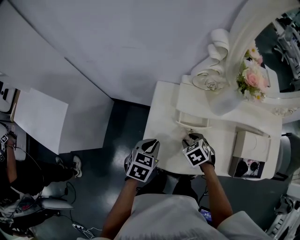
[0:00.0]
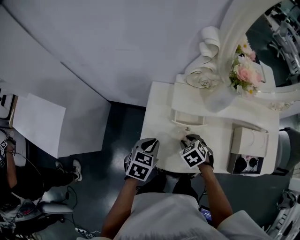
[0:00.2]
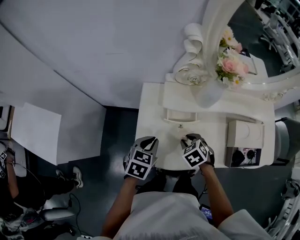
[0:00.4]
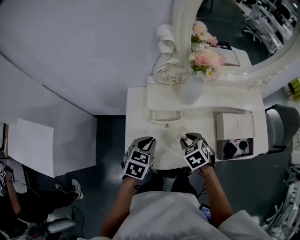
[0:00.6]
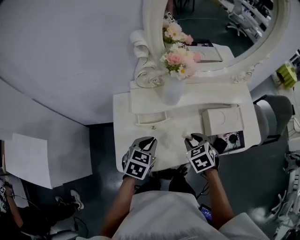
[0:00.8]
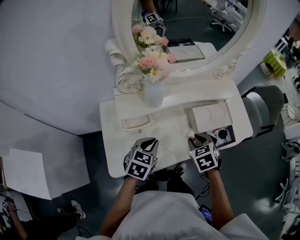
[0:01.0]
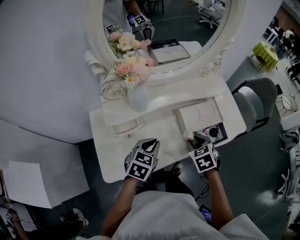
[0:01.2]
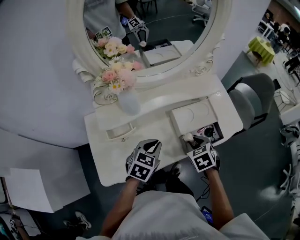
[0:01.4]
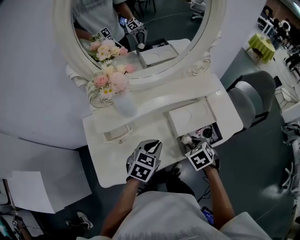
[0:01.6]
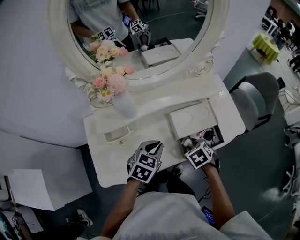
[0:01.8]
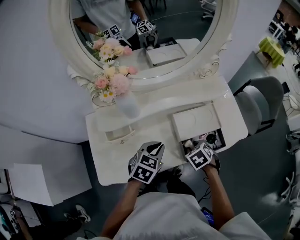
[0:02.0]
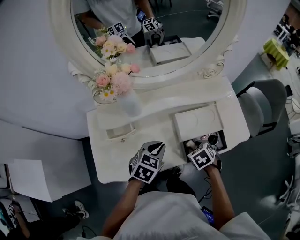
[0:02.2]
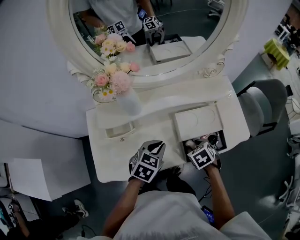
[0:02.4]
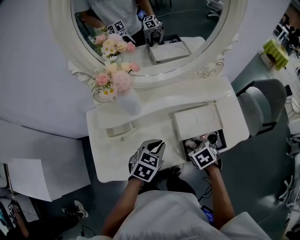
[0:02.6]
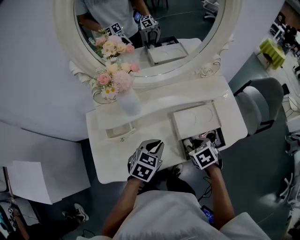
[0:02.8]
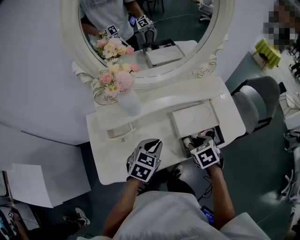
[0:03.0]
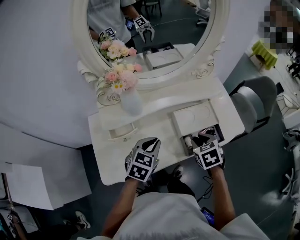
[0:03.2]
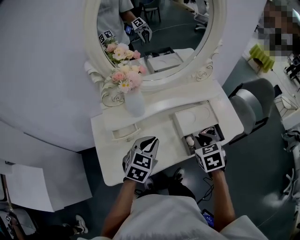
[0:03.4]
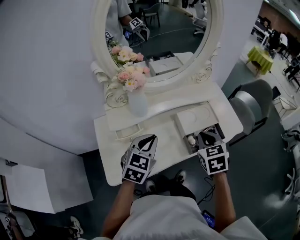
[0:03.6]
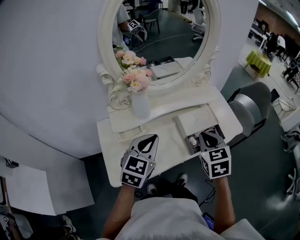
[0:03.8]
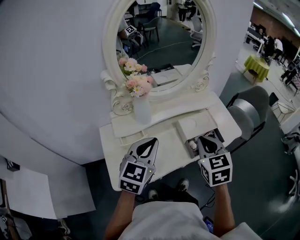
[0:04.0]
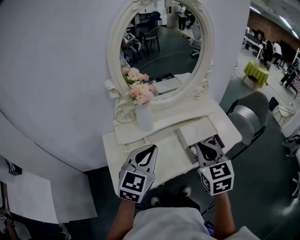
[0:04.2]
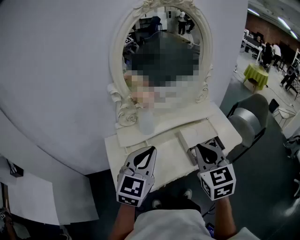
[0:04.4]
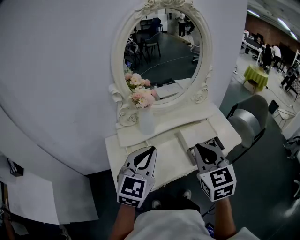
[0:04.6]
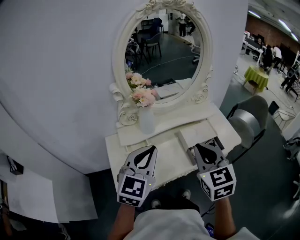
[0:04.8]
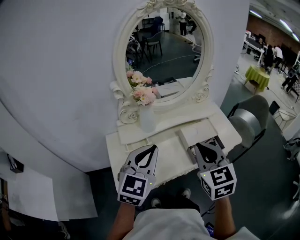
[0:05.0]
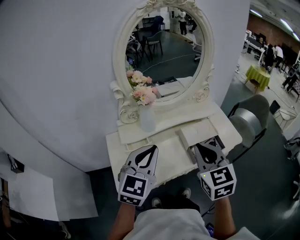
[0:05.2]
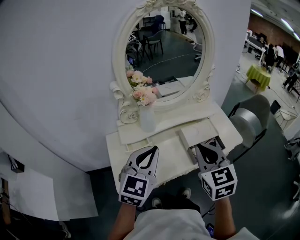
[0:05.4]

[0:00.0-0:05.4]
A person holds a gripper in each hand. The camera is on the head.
0:00.0 to 0:01.4: The right gripper shifts by roughly 35 cm, and swivels approximately 40 degrees; the left gripper ends up about 35 cm from where it was, and rotates some 40 degrees.
0:02.8 to 0:04.0: The two grippers go roughly 20 cm upward. The right gripper points its fingers some 40 degrees further upward, and closes up; the left gripper changes its angle by approximately 30 degrees.
0:04.0 to 0:05.4: The two grippers go roughly 5 cm upward.

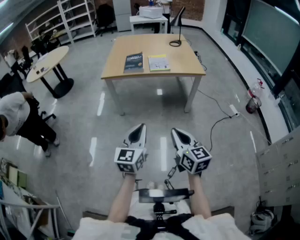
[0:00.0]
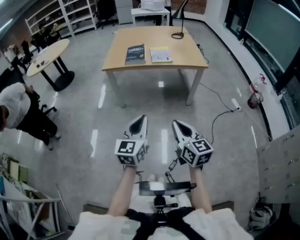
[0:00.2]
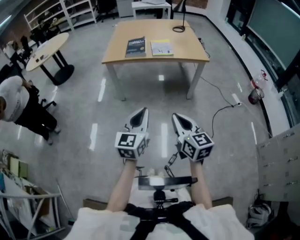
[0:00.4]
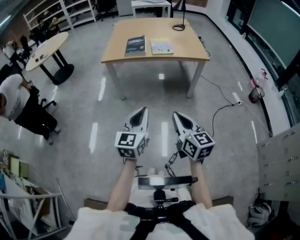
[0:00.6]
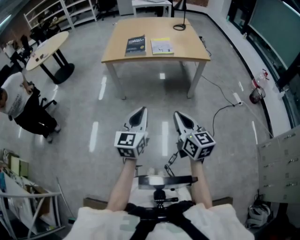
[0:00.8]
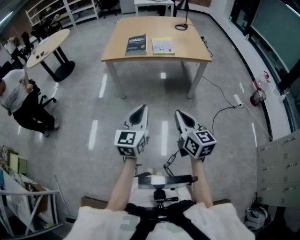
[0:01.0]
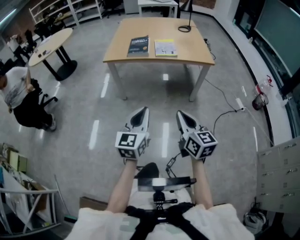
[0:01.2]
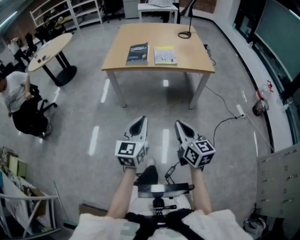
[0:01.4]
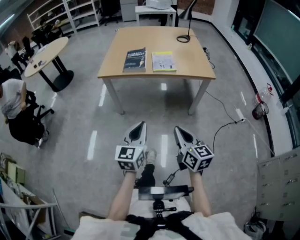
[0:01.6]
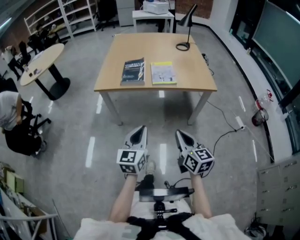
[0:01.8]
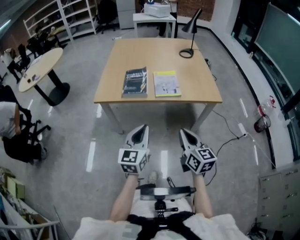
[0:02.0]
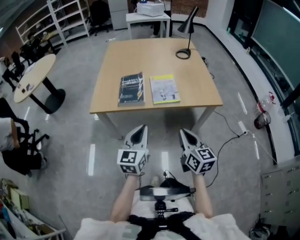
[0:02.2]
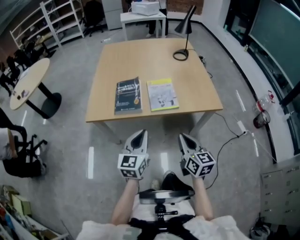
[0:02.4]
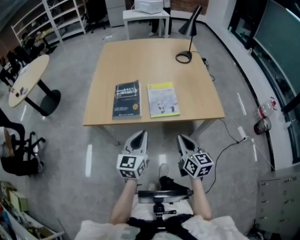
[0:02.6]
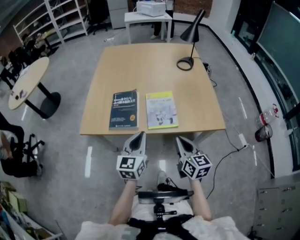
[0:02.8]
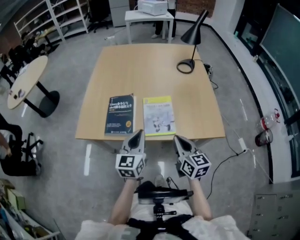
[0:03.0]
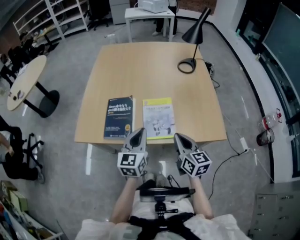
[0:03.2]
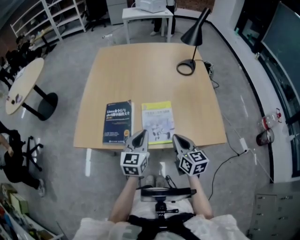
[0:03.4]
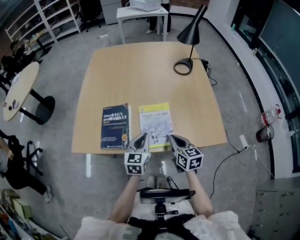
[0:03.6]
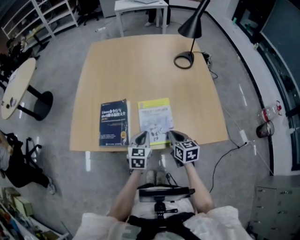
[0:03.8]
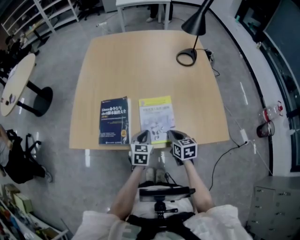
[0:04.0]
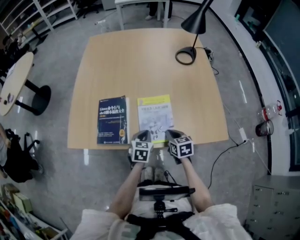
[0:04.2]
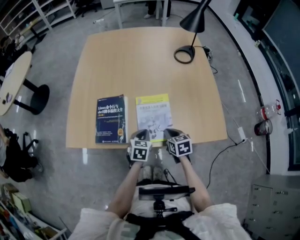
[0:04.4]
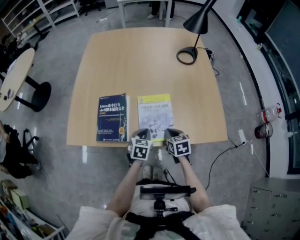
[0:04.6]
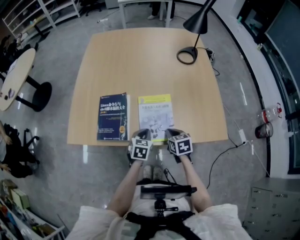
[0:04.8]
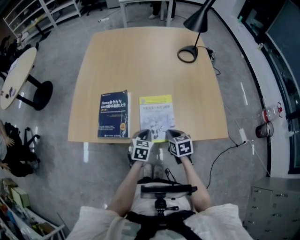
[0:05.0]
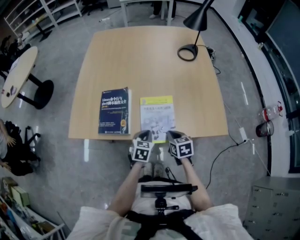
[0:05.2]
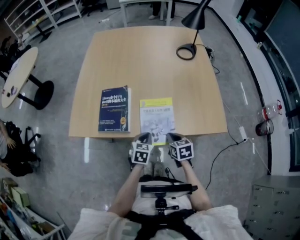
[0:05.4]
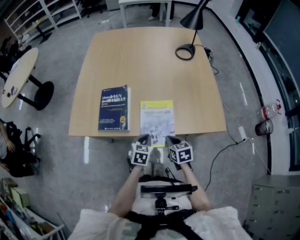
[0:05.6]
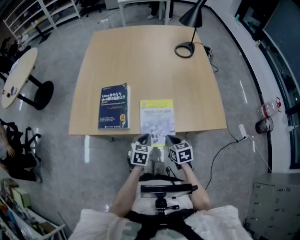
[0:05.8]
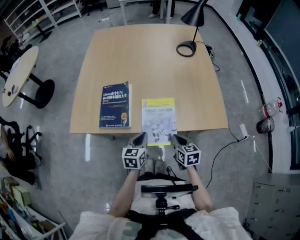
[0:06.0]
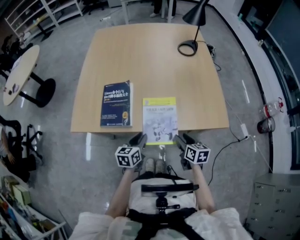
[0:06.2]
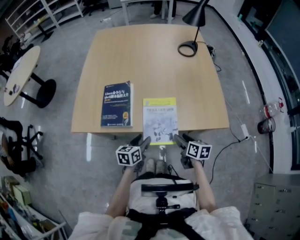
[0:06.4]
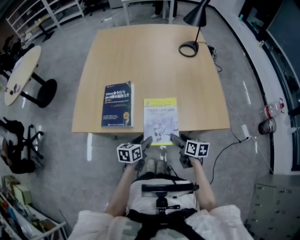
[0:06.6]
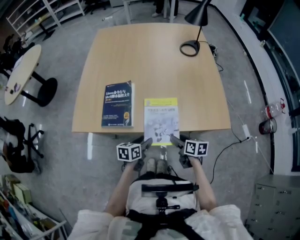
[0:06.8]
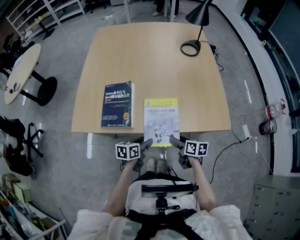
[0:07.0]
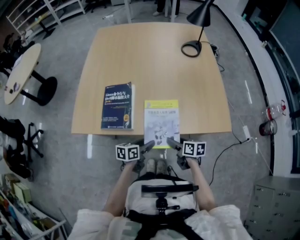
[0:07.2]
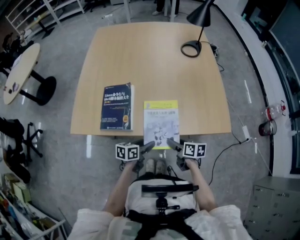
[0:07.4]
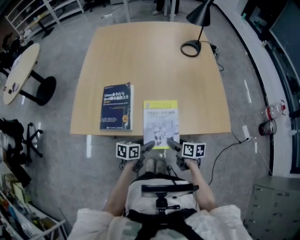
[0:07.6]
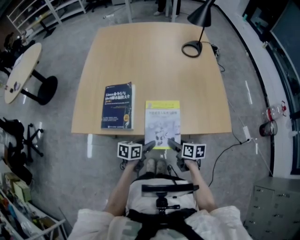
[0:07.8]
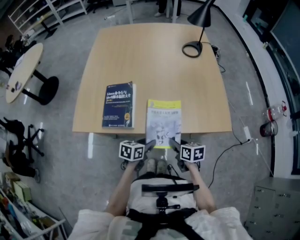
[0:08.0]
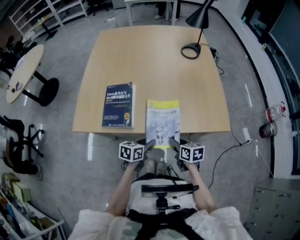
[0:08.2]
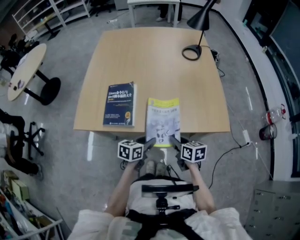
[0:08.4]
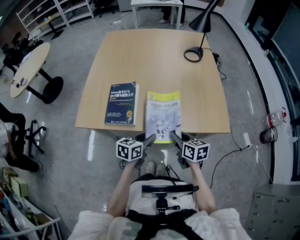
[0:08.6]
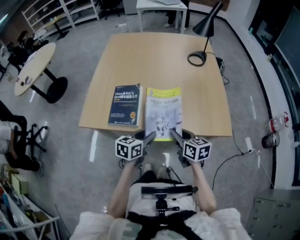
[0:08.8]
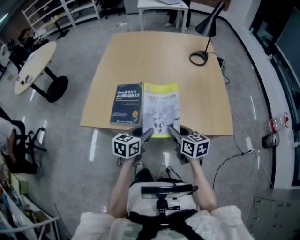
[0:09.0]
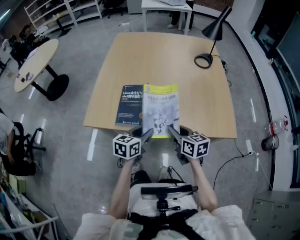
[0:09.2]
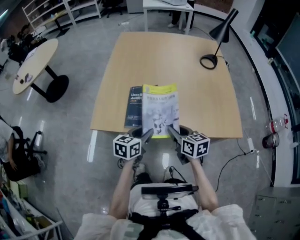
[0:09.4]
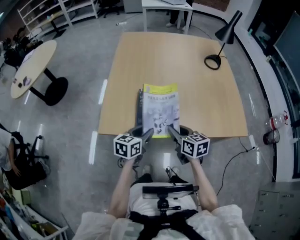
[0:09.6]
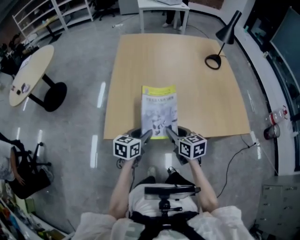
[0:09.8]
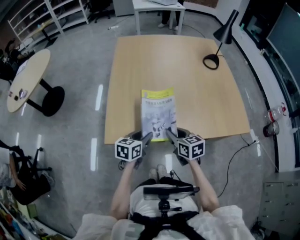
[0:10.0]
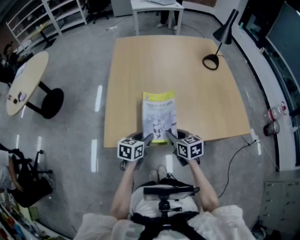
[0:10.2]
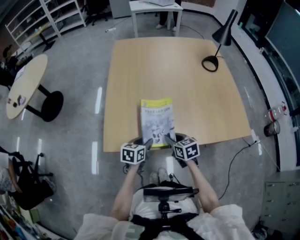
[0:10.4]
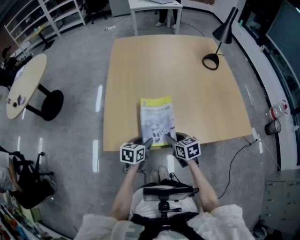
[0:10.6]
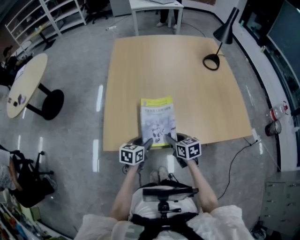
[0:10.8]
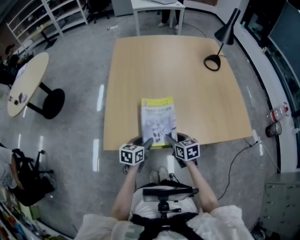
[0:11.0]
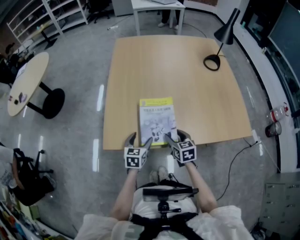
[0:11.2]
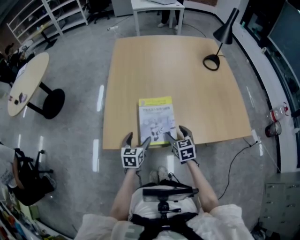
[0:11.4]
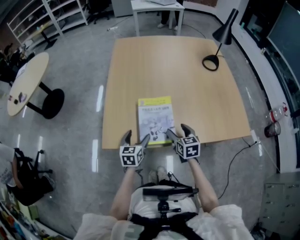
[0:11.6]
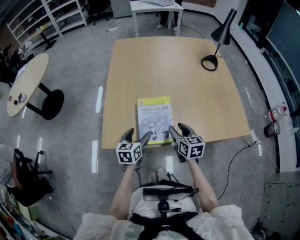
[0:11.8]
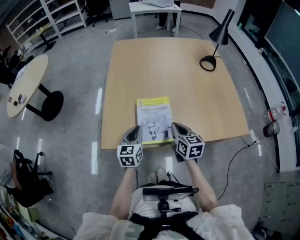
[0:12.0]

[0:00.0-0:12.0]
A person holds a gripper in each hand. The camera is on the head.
0:00.0 to 0:01.6: Both grippers move forward, approximately 15 cm.
0:01.6 to 0:03.0: The pair of grippers is taken forward, some 50 cm.
0:03.0 to 0:04.4: The two grippers go about 20 cm downward and forward. The right gripper angles its fingers downward, by roughly 30 degrees; the left gripper tilts its fingers some 30 degrees downward.
0:04.4 to 0:06.0: The grippers both shift backward by approximately 10 cm.
0:06.0 to 0:07.6: The right gripper rotates roughly 30 degrees, and opens its fingers. Meanwhile the left gripper is displaced downward by about 5 cm, changes its angle by about 30 degrees, and opens.
0:07.6 to 0:09.0: Both grippers move upward, about 15 cm. The right gripper turns by some 30 degrees, while the left gripper swivels some 30 degrees.
0:09.0 to 0:10.4: The two grippers go some 25 cm to the left and downward.
0:10.4 to 0:12.0: Both grippers travel together upward, some 10 cm. The left gripper swivels about 30 degrees, and opens, then closes once more. Meanwhile the right gripper rotates about 20 degrees, and closes.

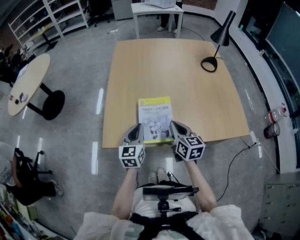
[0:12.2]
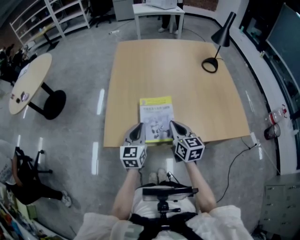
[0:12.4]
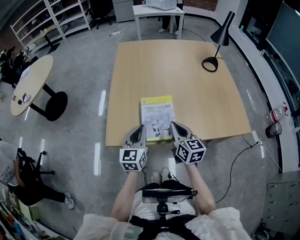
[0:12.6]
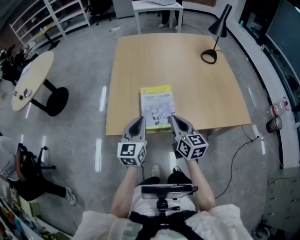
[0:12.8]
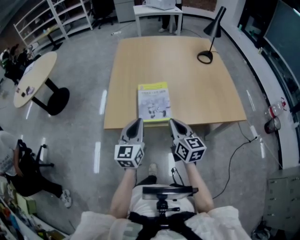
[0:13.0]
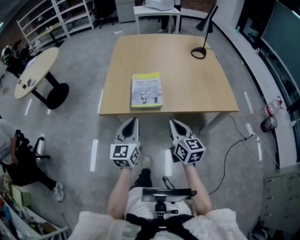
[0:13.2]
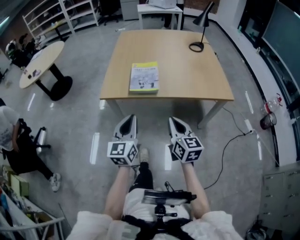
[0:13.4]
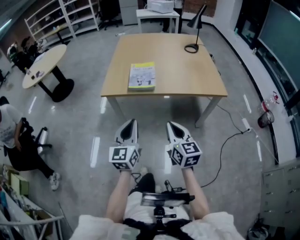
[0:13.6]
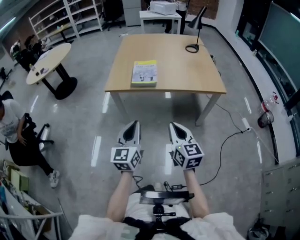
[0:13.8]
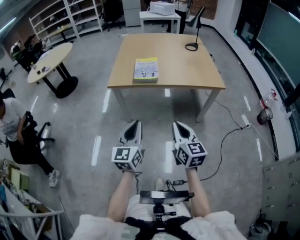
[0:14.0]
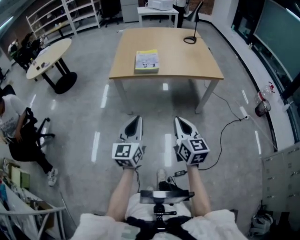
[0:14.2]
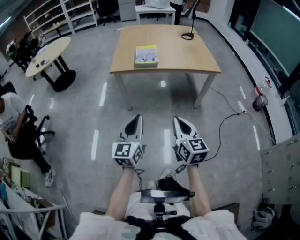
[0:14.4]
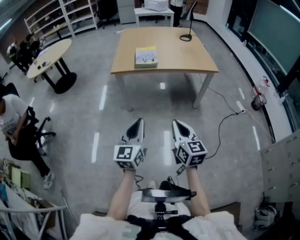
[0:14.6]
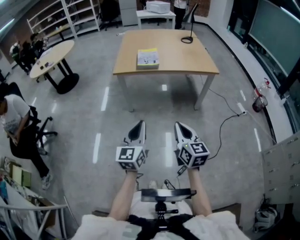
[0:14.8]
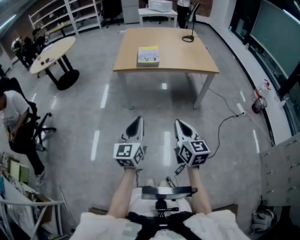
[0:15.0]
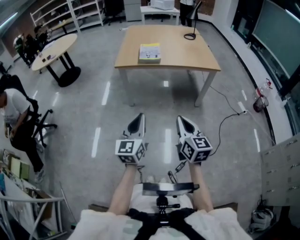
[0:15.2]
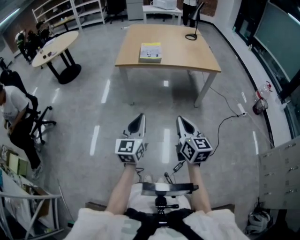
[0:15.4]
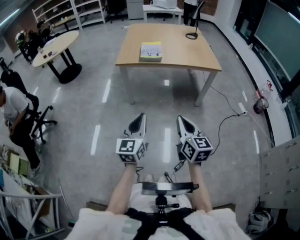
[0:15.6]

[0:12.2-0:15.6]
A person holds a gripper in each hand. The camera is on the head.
0:12.2 to 0:13.8: Both grippers are carried backward, approximately 50 cm.
0:13.8 to 0:15.6: The two grippers go roughly 25 cm backward.

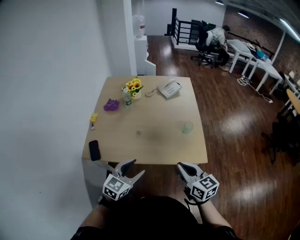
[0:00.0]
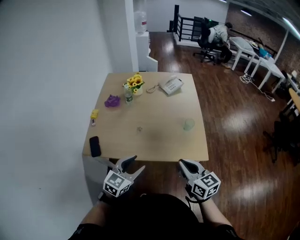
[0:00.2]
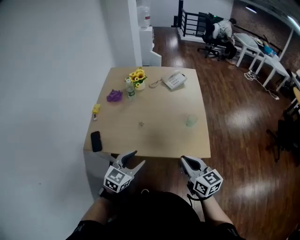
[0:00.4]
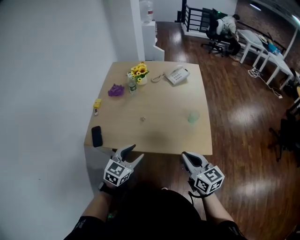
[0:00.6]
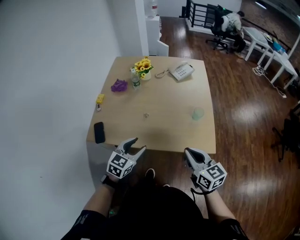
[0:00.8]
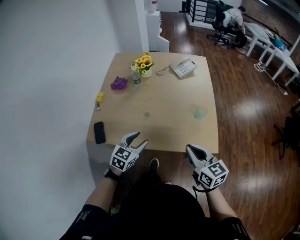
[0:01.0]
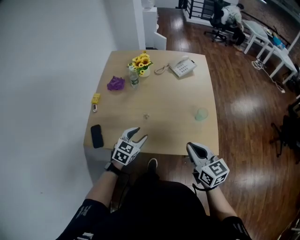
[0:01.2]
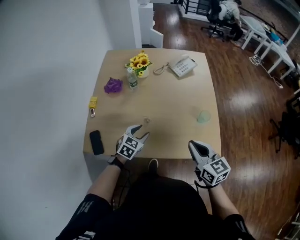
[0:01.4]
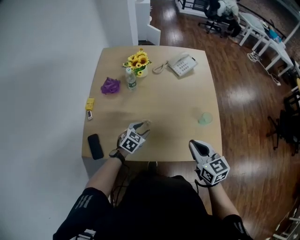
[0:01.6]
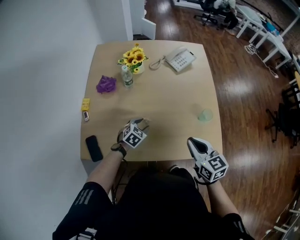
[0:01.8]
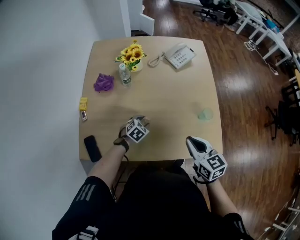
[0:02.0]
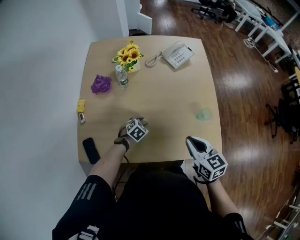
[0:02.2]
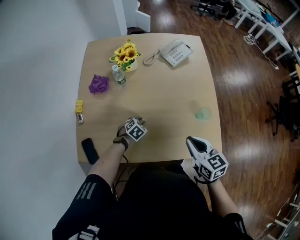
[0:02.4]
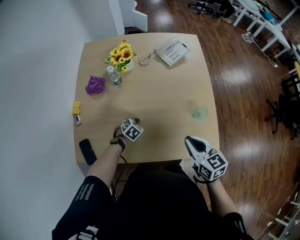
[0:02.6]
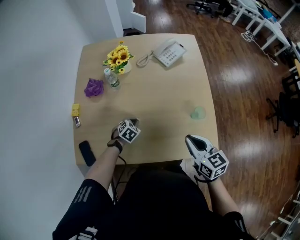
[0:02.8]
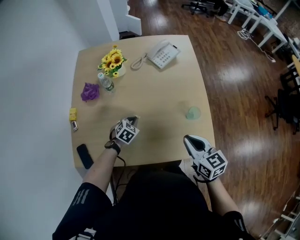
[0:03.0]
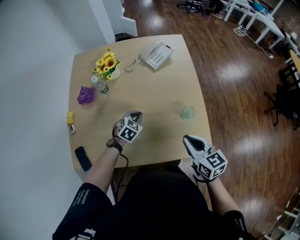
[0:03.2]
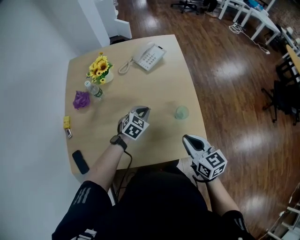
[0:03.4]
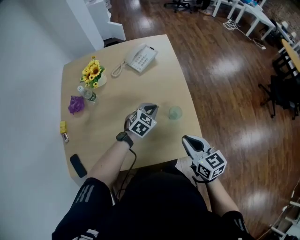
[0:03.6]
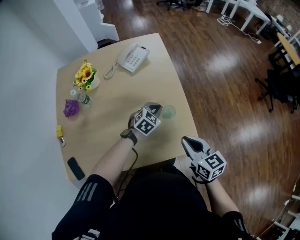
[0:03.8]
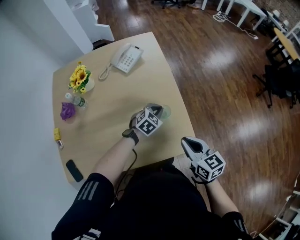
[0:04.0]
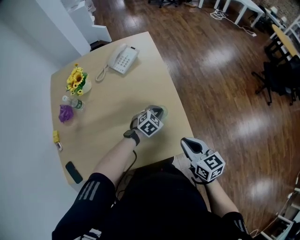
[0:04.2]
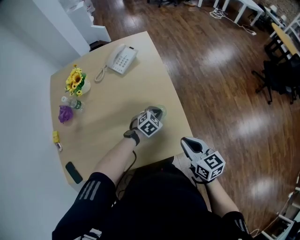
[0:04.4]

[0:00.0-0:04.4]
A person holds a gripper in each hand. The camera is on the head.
0:00.0 to 0:01.4: The left gripper shifts some 30 cm forward and downward, while the right gripper moves forward, roughly 15 cm.
0:01.4 to 0:03.0: The left gripper goes roughly 15 cm forward and downward, and closes, while the right gripper is displaced forward by roughly 10 cm.
0:03.0 to 0:04.4: The left gripper goes about 35 cm to the right, and changes its angle by approximately 20 degrees, while the right gripper heads to the right, covering roughly 15 cm.
